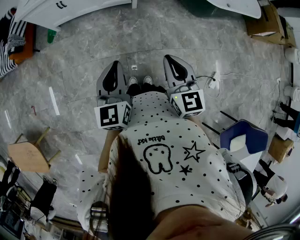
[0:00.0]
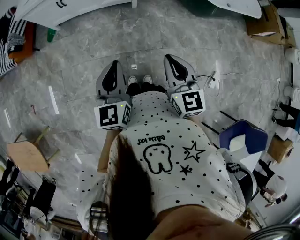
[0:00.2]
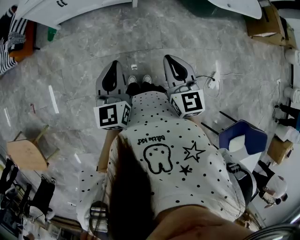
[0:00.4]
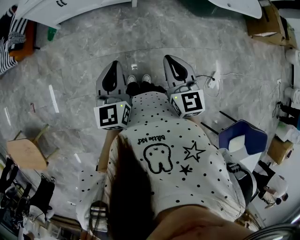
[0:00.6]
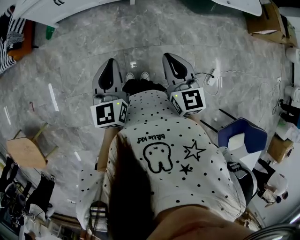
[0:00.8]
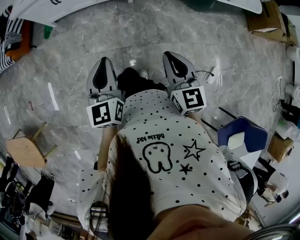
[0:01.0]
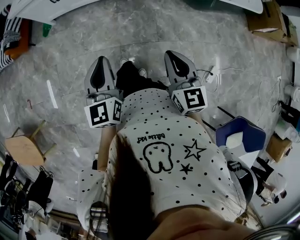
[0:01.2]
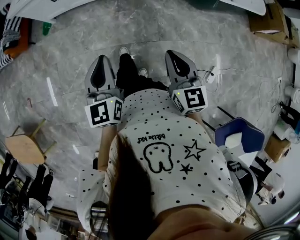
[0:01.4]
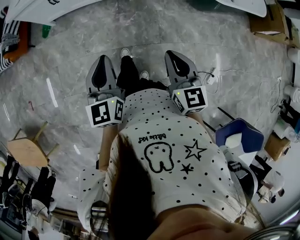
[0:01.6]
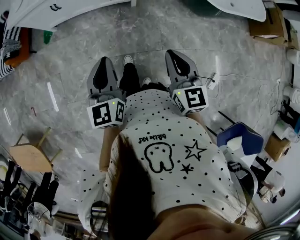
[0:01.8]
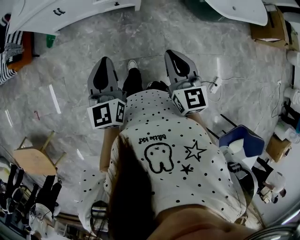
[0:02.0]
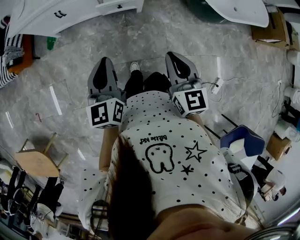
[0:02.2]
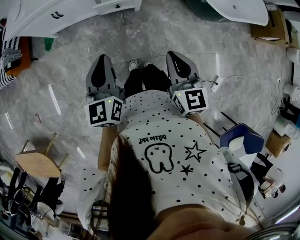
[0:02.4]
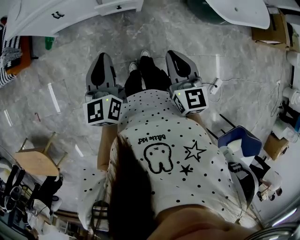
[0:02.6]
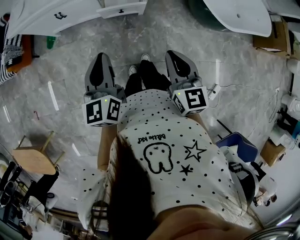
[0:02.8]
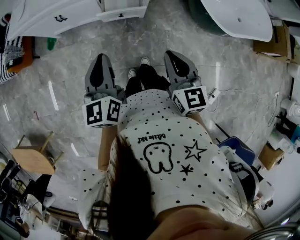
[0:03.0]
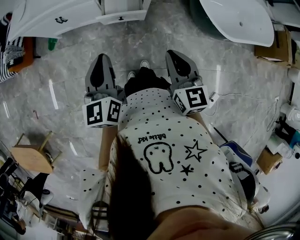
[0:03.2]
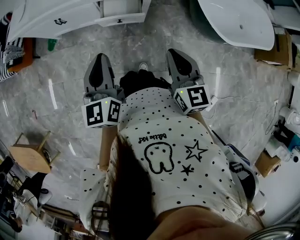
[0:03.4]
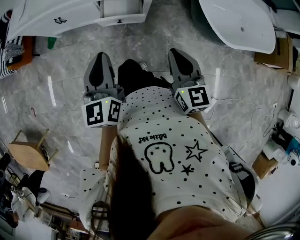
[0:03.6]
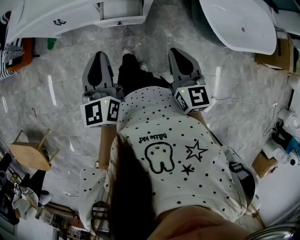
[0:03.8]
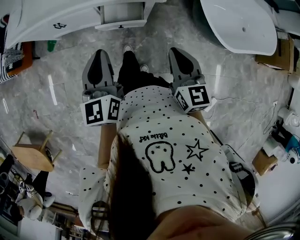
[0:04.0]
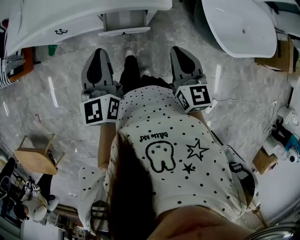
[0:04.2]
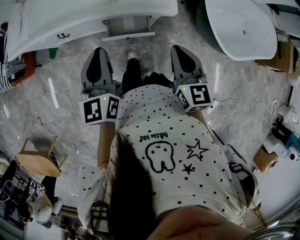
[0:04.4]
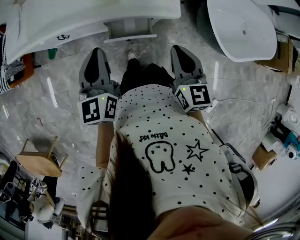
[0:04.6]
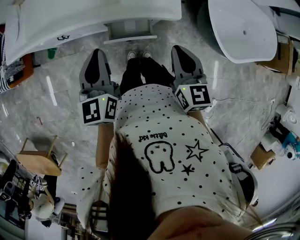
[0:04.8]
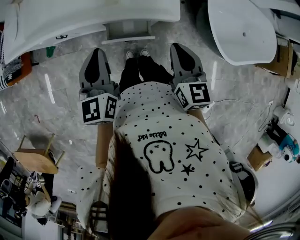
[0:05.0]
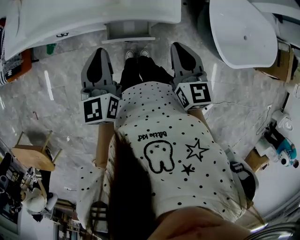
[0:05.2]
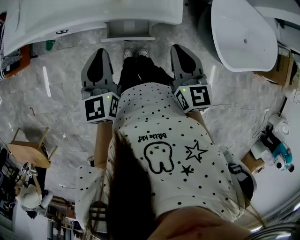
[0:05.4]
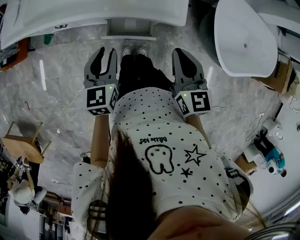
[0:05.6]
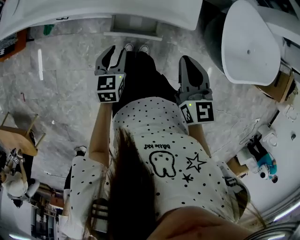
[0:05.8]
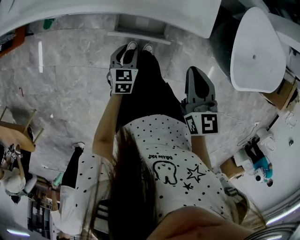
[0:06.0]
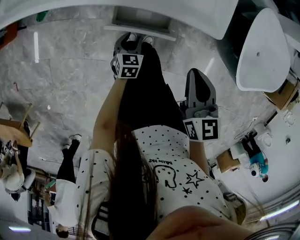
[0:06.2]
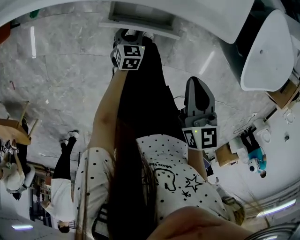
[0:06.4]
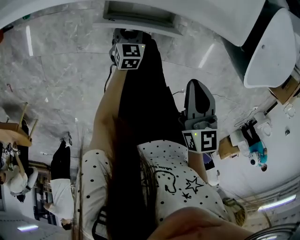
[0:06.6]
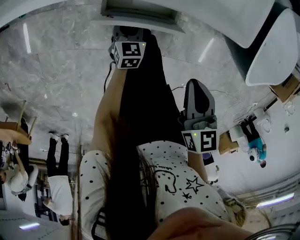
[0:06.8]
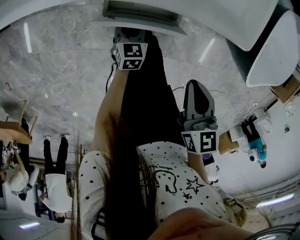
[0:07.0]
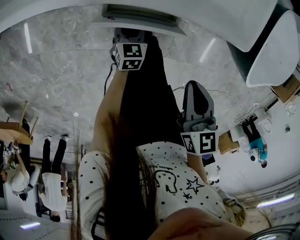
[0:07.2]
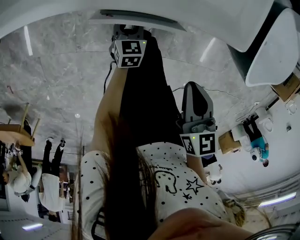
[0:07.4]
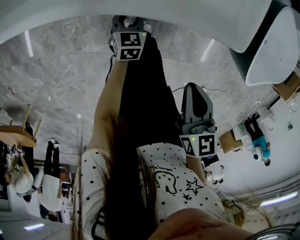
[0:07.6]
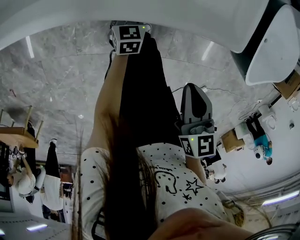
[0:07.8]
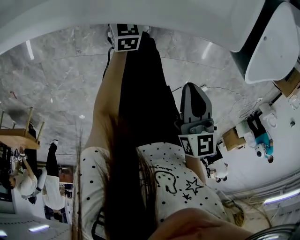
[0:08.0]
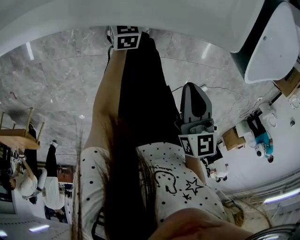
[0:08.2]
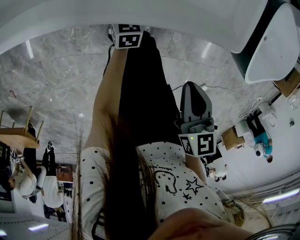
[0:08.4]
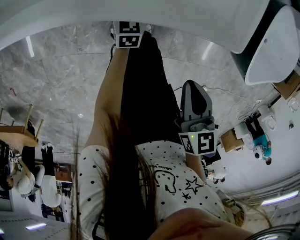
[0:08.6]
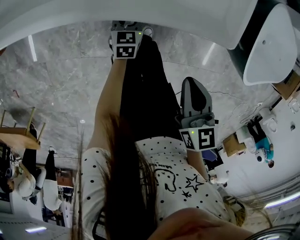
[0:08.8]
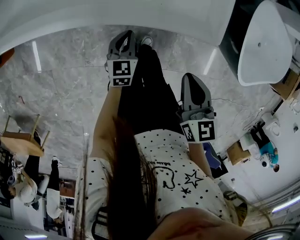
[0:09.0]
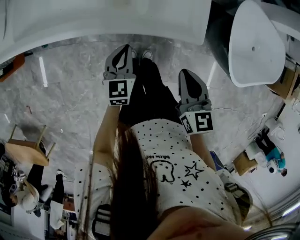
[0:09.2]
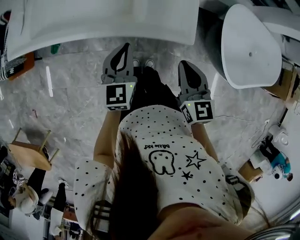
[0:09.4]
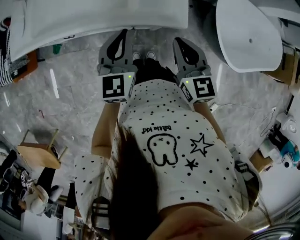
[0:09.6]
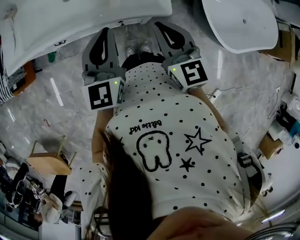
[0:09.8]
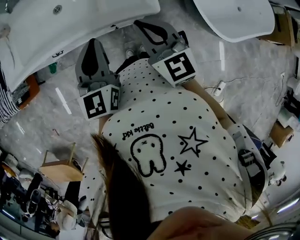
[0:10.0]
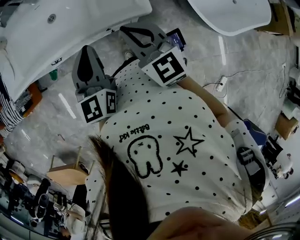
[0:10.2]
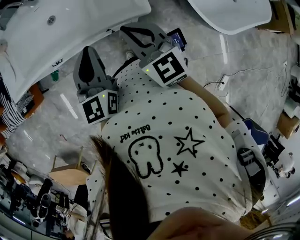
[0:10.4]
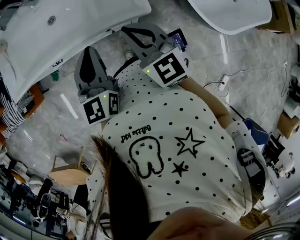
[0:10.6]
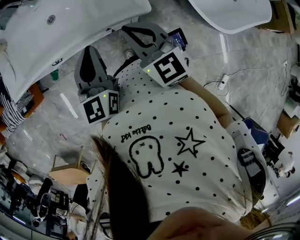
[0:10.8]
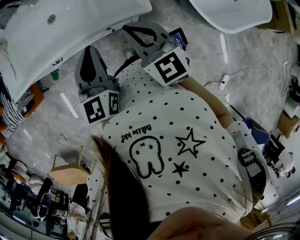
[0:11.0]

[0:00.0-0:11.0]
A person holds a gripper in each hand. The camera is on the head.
0:00.0 to 0:01.6: The left gripper moves forward, approximately 5 cm. Meanwhile the right gripper ends up about 10 cm from where it was.
0:01.6 to 0:03.2: Both grippers travel together forward, roughly 25 cm.
0:03.2 to 0:04.8: Both grippers move forward, approximately 25 cm.
0:04.8 to 0:06.2: The right gripper moves downward, some 15 cm; the left gripper heads downward, covering approximately 40 cm, tips its fingers downward by roughly 40 degrees, and opens up.
0:06.2 to 0:07.8: The left gripper moves forward and downward, roughly 15 cm; the right gripper moves downward, some 5 cm.
0:07.8 to 0:09.4: The left gripper goes about 40 cm upward, changes its angle by approximately 20 degrees, and closes. The right gripper travels upward by roughly 15 cm, and changes its angle by approximately 20 degrees.
0:09.4 to 0:11.0: The left gripper shifts approximately 10 cm upward. The right gripper is displaced upward by some 5 cm.

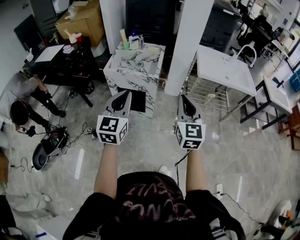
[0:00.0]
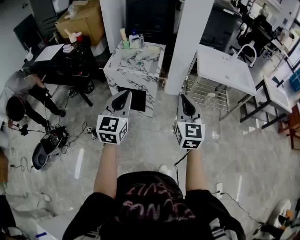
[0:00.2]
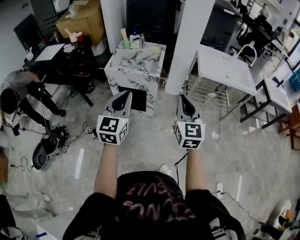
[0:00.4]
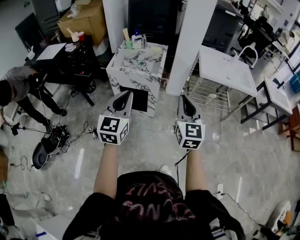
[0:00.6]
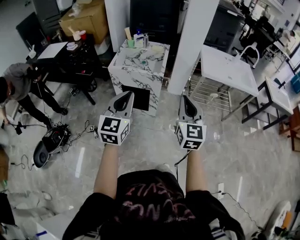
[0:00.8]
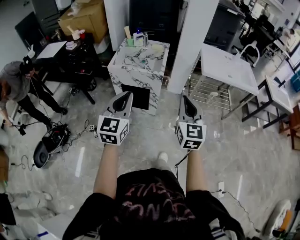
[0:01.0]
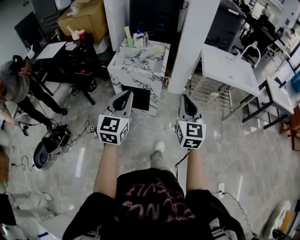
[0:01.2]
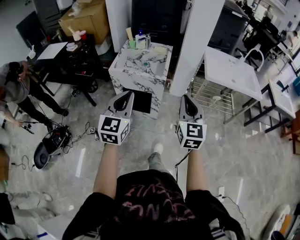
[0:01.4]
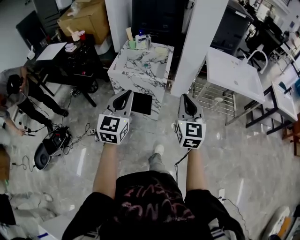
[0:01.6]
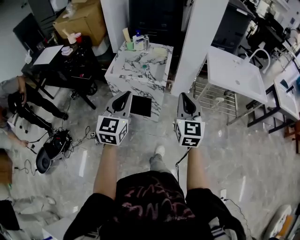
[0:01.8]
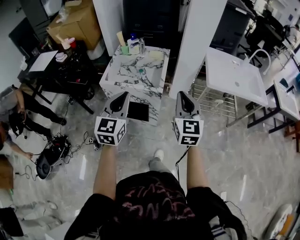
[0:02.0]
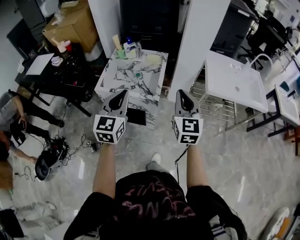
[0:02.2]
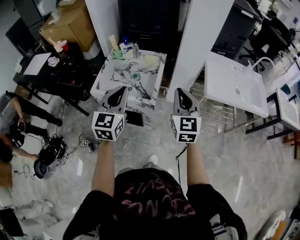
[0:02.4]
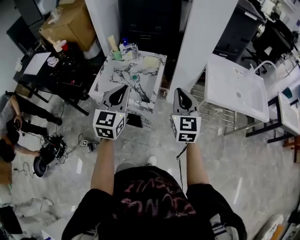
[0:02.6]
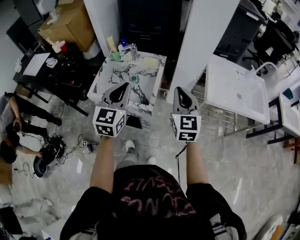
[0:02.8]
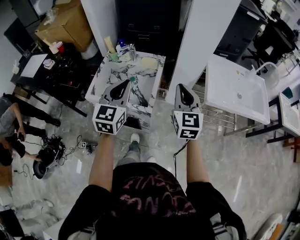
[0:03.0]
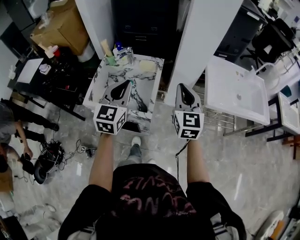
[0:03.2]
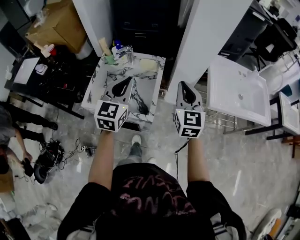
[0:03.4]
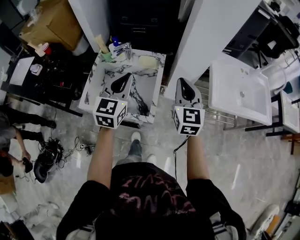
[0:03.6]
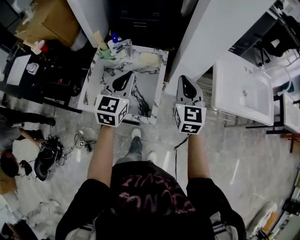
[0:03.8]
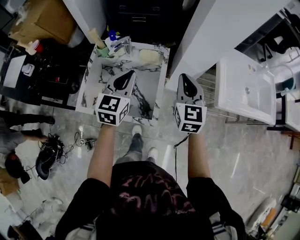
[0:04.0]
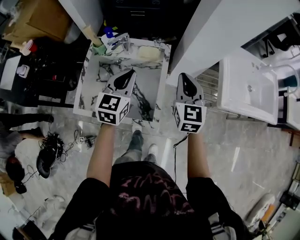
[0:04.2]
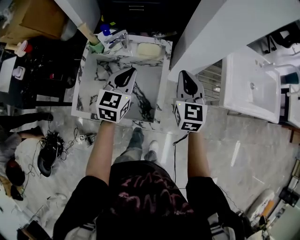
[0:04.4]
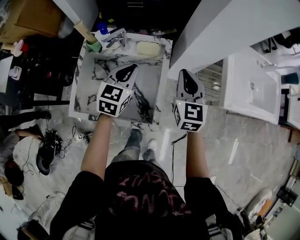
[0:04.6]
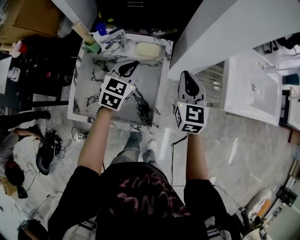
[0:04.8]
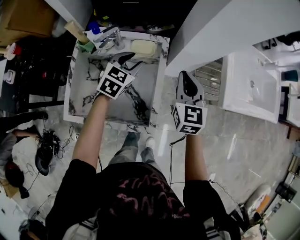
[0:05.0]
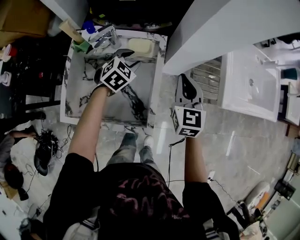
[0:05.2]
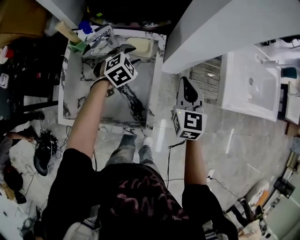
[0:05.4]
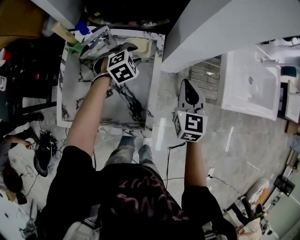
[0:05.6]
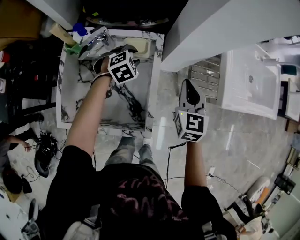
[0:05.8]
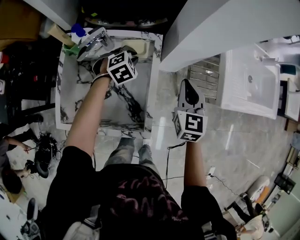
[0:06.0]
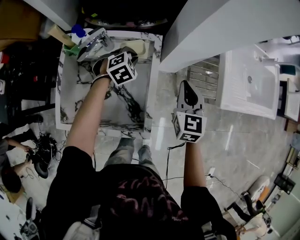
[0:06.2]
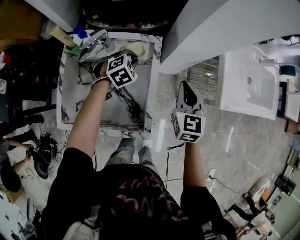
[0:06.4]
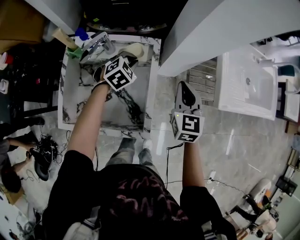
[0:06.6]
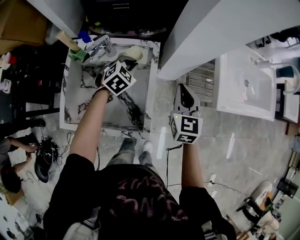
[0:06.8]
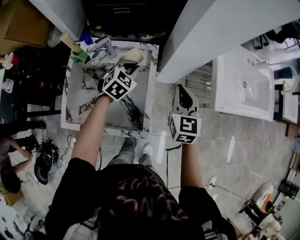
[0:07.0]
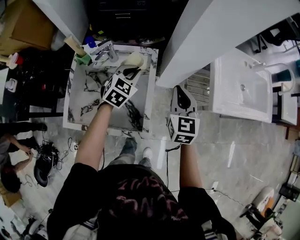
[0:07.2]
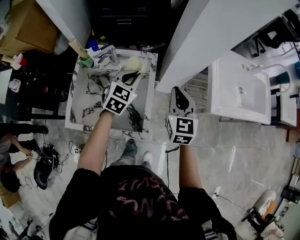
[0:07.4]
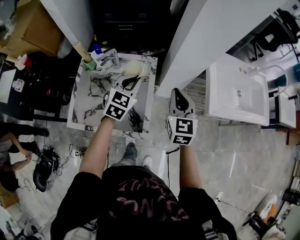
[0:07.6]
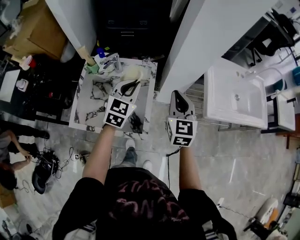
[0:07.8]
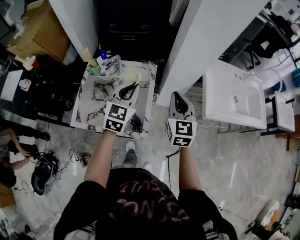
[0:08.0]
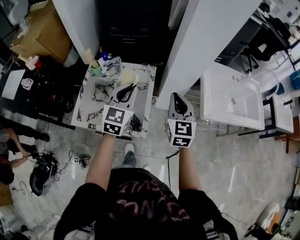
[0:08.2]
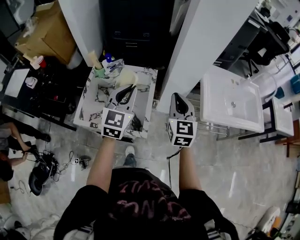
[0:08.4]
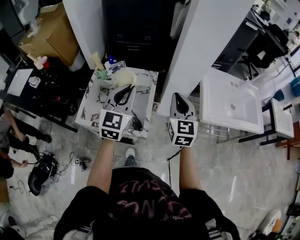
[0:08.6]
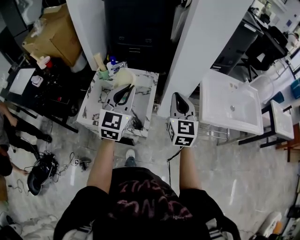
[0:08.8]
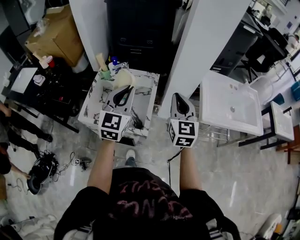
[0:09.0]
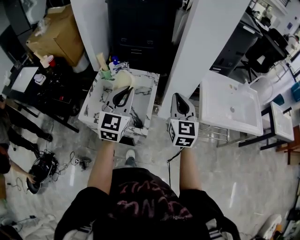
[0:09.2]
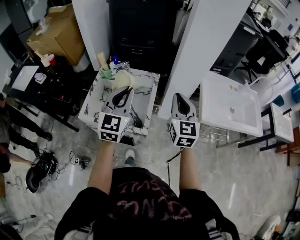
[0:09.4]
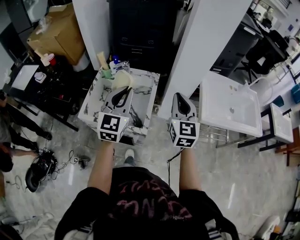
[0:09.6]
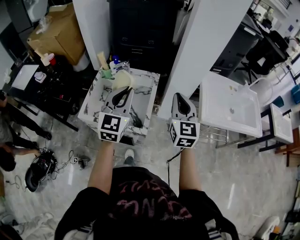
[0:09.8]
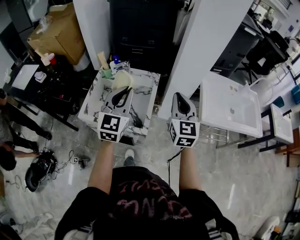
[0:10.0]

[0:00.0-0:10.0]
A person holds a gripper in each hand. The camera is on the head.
0:00.0 to 0:01.4: The left gripper changes place by some 5 cm, while the right gripper changes place by some 5 cm.
0:01.4 to 0:02.8: The two grippers go some 35 cm forward.
0:02.8 to 0:04.2: Both grippers move forward and downward, roughly 25 cm.
0:04.2 to 0:05.8: The left gripper heads downward and forward, covering roughly 25 cm, points its fingers approximately 40 degrees further downward, and opens; the right gripper is displaced downward by roughly 10 cm.
0:05.8 to 0:07.2: The left gripper is displaced upward by approximately 10 cm, changes its angle by approximately 30 degrees, and closes up. The right gripper goes roughly 5 cm upward.
0:07.2 to 0:08.6: The left gripper travels upward and backward by some 30 cm, and changes its angle by some 30 degrees; the right gripper goes about 15 cm upward and backward.
0:08.6 to 0:10.0: The left gripper goes some 5 cm backward.

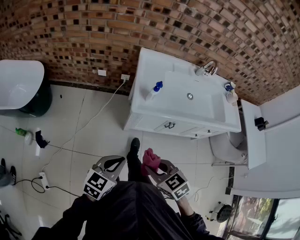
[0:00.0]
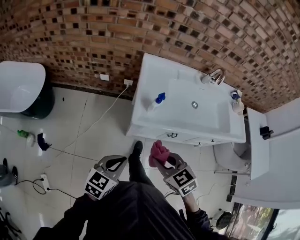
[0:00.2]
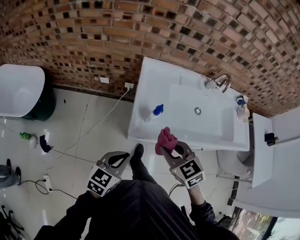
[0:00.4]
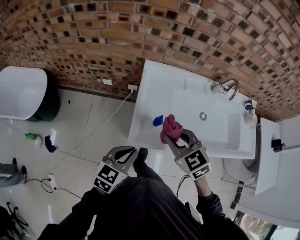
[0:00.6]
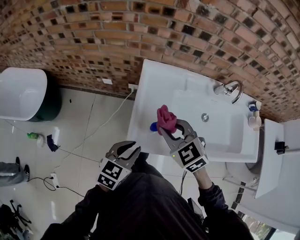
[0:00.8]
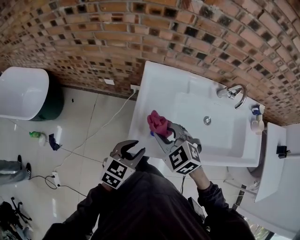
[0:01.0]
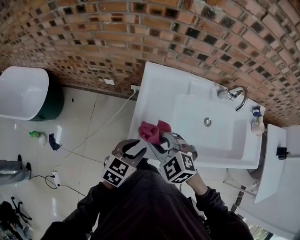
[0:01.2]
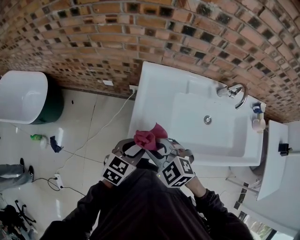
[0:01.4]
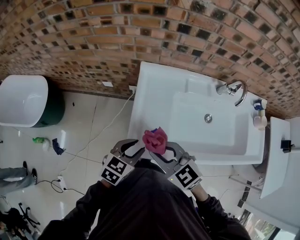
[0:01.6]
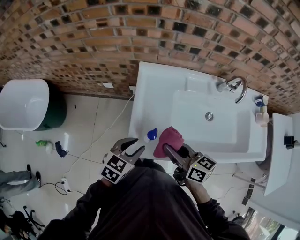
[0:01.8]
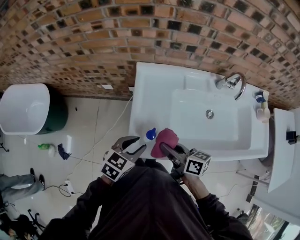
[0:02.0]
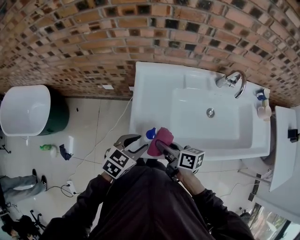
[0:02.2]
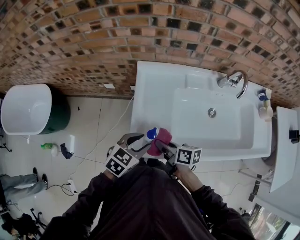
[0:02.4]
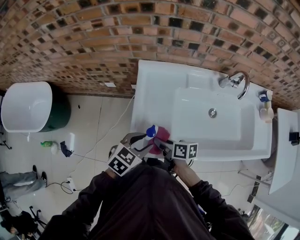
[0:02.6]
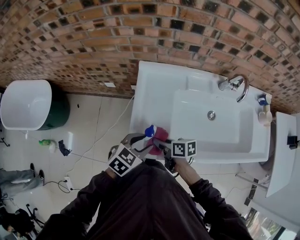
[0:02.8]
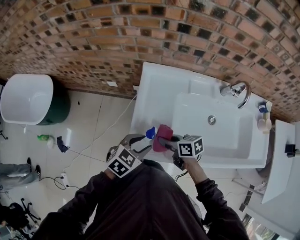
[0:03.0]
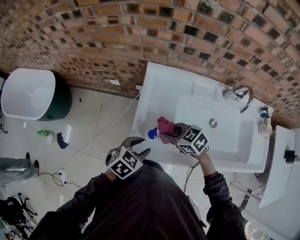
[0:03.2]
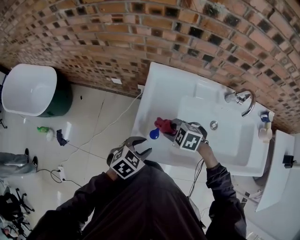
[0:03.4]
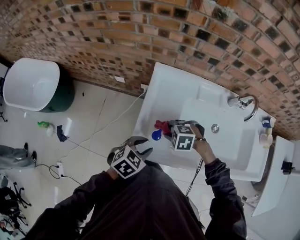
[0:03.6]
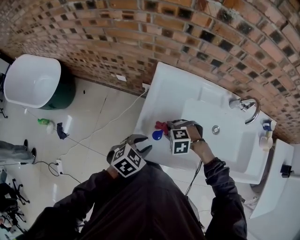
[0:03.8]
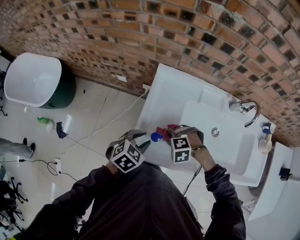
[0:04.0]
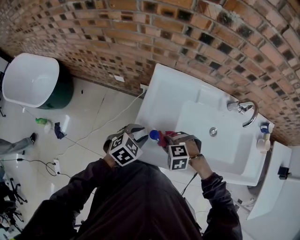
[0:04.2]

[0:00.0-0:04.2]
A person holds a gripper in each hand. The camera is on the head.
0:00.0 to 0:01.4: The right gripper goes approximately 35 cm forward, and turns by about 30 degrees. Meanwhile the left gripper travels forward and to the right by some 35 cm, and opens its fingers.
0:01.4 to 0:02.8: The right gripper is displaced downward by some 15 cm, and rolls clockwise, seen from behind, by approximately 80 degrees.
0:02.8 to 0:04.2: The right gripper rolls counterclockwise, seen from behind, by some 100 degrees. The left gripper changes place by approximately 5 cm.
